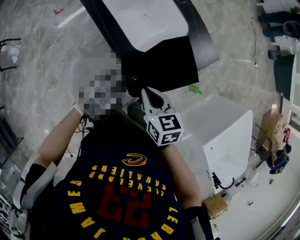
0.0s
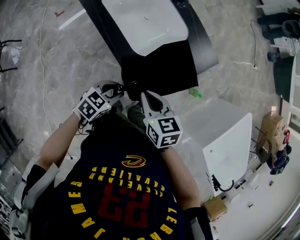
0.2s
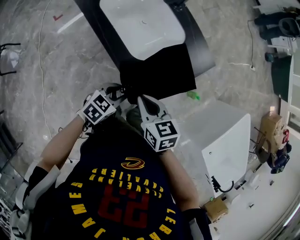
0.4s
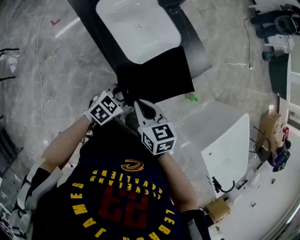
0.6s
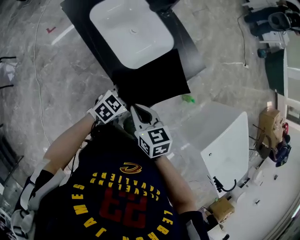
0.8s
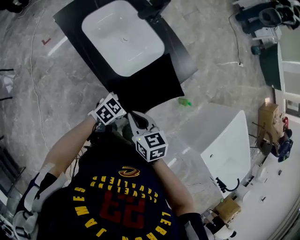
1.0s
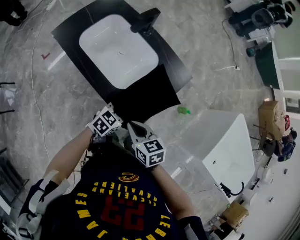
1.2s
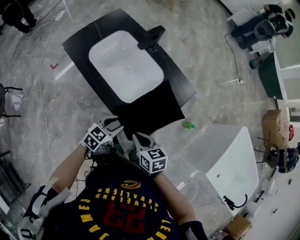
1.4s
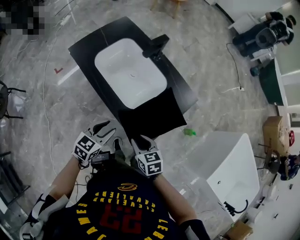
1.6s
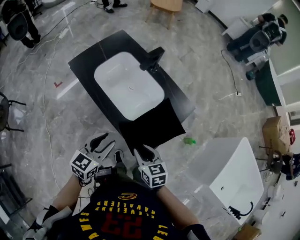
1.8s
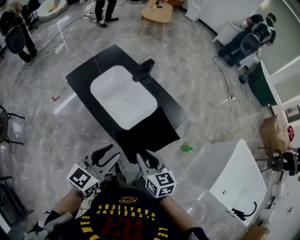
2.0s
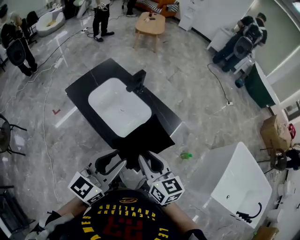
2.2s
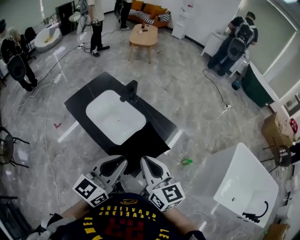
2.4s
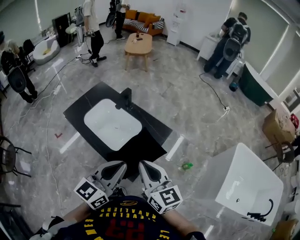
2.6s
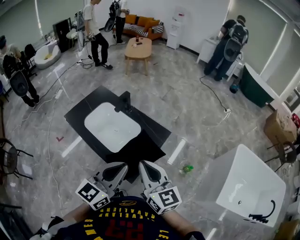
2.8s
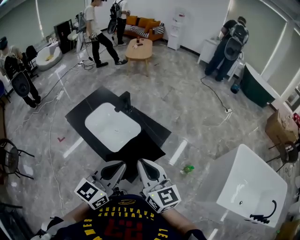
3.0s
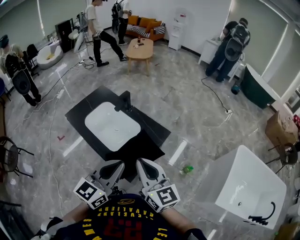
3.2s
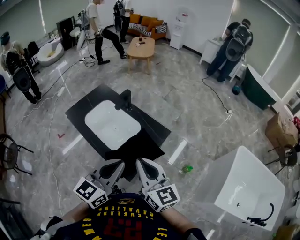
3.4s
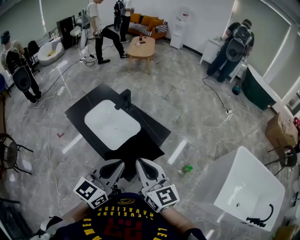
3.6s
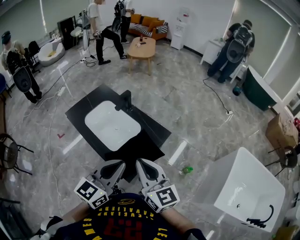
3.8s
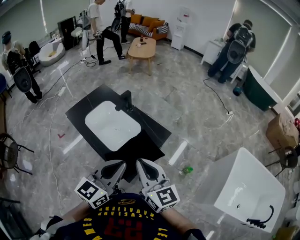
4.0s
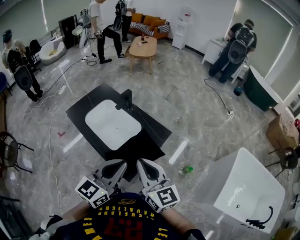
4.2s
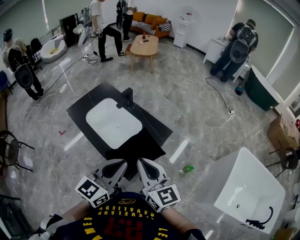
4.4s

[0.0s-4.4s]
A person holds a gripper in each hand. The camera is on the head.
0.0s to 1.4s: The left gripper moves roughly 10 cm to the right and comes back, and closes.
1.4s to 3.0s: The left gripper travels upward by some 35 cm, tilts its fingers about 30 degrees upward, and closes its fingers; the right gripper shifts approximately 35 cm upward and to the right, angles its fingers upward, by some 40 degrees, and opens, then closes again.
3.0s to 4.4s: The grippers move only a little.

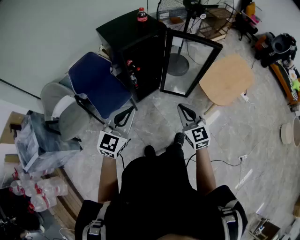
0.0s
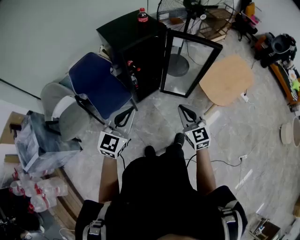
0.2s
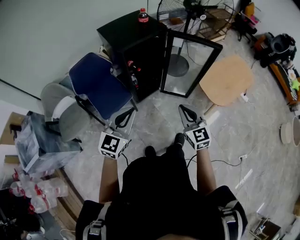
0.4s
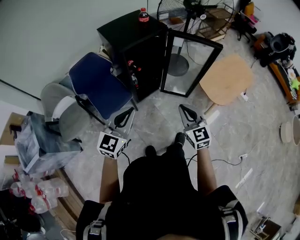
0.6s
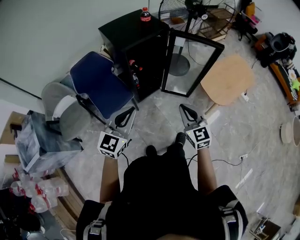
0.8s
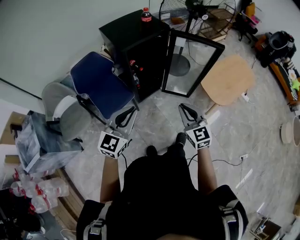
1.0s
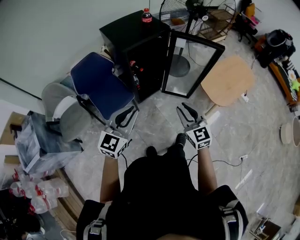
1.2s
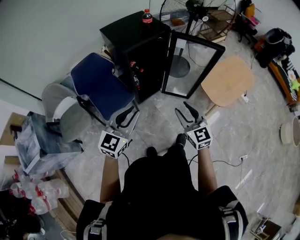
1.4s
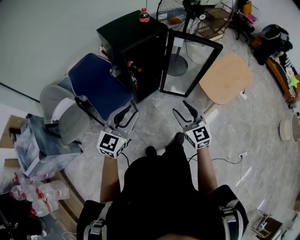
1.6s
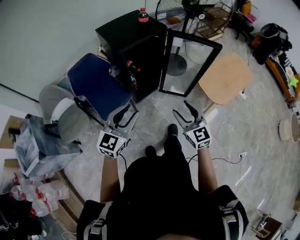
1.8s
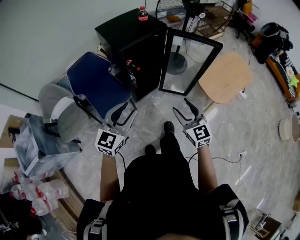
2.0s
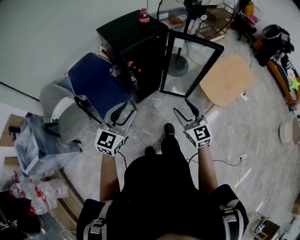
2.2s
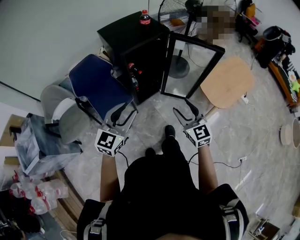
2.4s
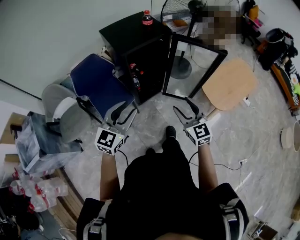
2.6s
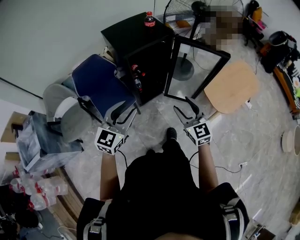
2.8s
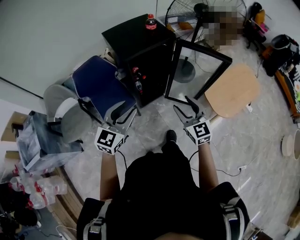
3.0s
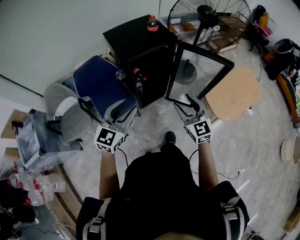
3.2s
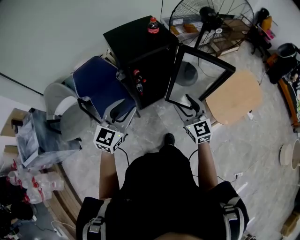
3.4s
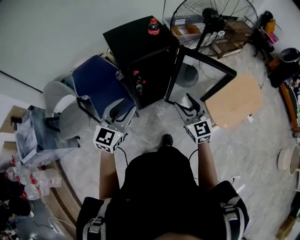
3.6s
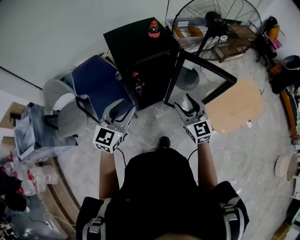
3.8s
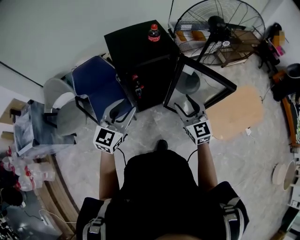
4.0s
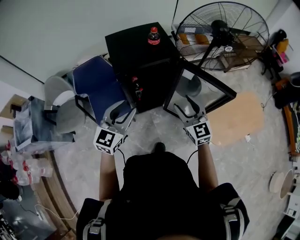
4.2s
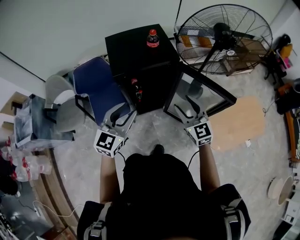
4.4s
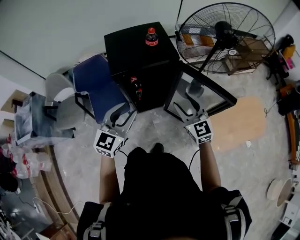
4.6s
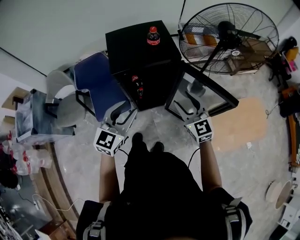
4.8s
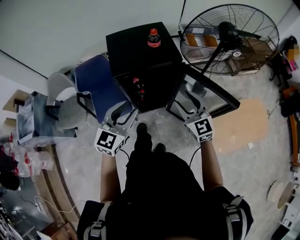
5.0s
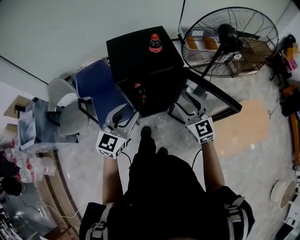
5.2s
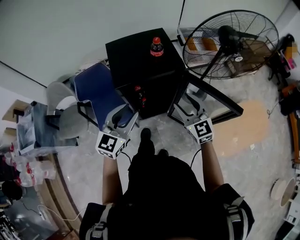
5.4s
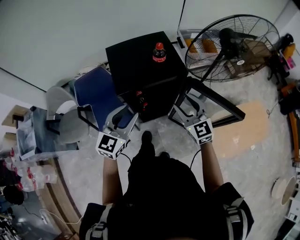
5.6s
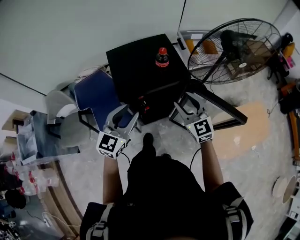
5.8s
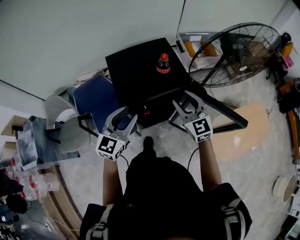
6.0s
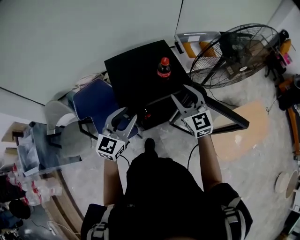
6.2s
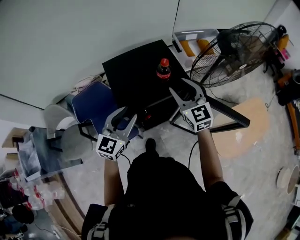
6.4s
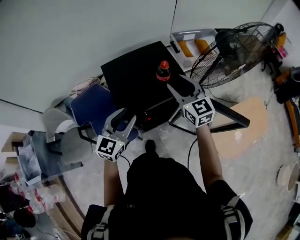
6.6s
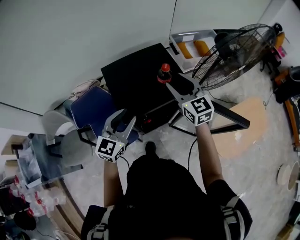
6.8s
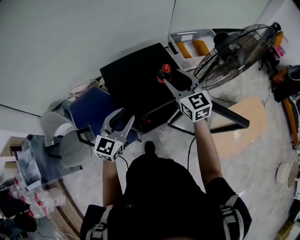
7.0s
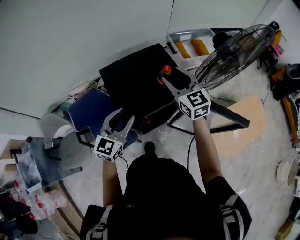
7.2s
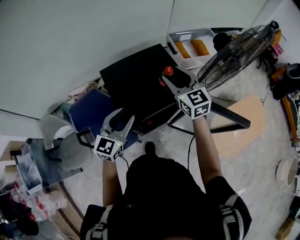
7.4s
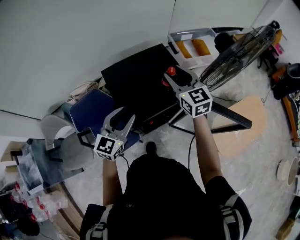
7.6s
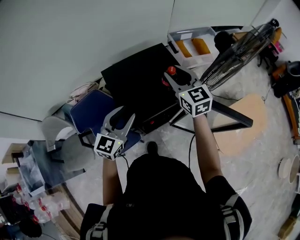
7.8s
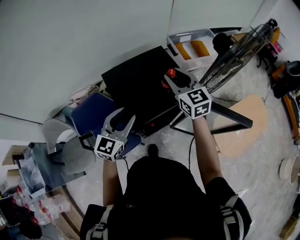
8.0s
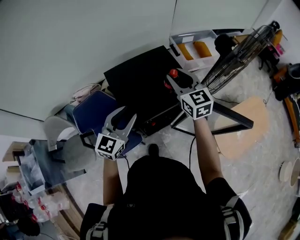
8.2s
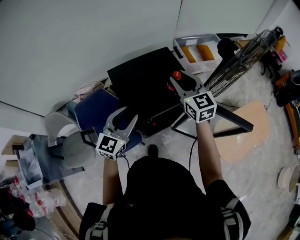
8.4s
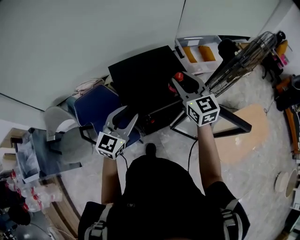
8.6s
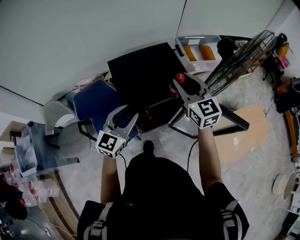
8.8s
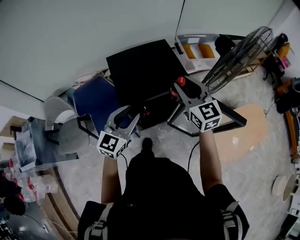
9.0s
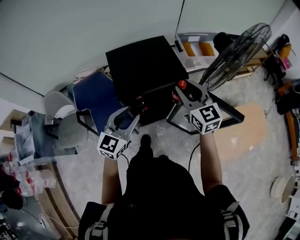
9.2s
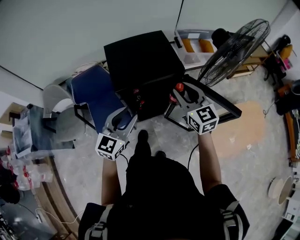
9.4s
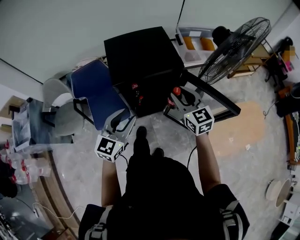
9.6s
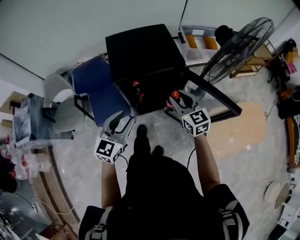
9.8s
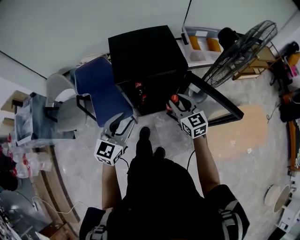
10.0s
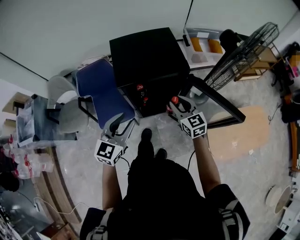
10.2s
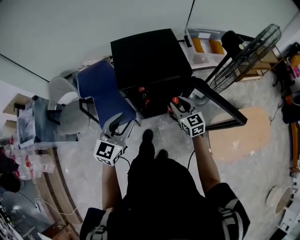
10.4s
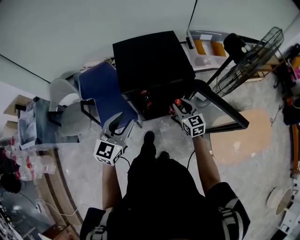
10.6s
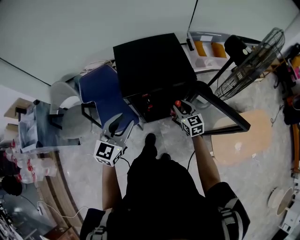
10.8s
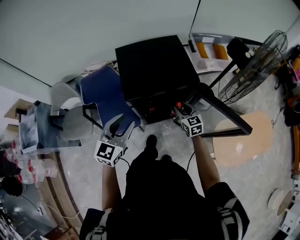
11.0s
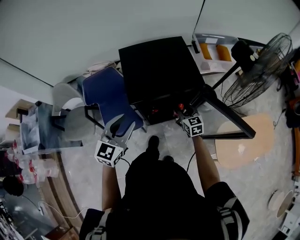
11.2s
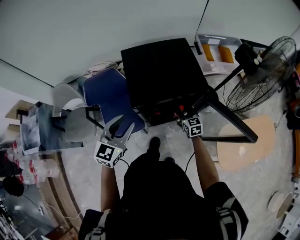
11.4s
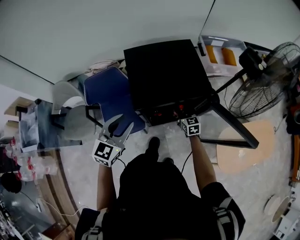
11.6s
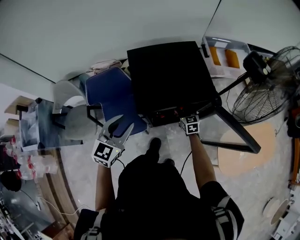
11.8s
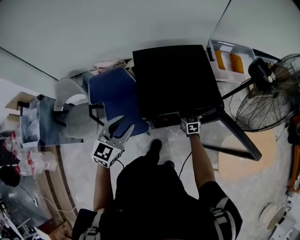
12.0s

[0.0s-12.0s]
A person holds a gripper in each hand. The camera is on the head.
0.0s to 1.6s: The right gripper opens its fingers. Meanwhile the left gripper opens up.
1.6s to 3.0s: The grippers both shift forward by roughly 10 cm.
3.0s to 4.4s: Both grippers travel together forward and to the right, roughly 15 cm.
4.4s to 6.0s: Both grippers move forward, some 15 cm.
6.0s to 7.6s: The right gripper moves forward, upward and to the left, roughly 15 cm; the left gripper heads forward, covering about 10 cm.
7.6s to 9.0s: The grippers both shift backward and to the right by about 10 cm.
9.0s to 10.4s: The right gripper is displaced downward by approximately 20 cm. Meanwhile the left gripper moves backward, some 10 cm.
10.4s to 12.0s: The left gripper goes approximately 15 cm forward and to the left. Meanwhile the right gripper moves downward and forward, approximately 25 cm.

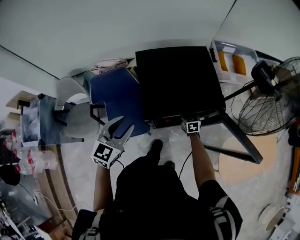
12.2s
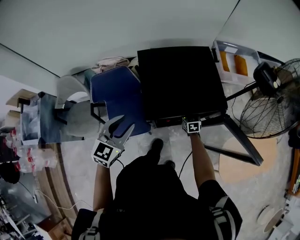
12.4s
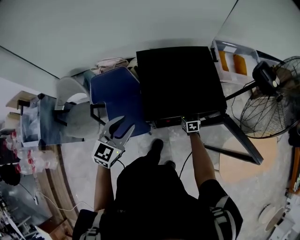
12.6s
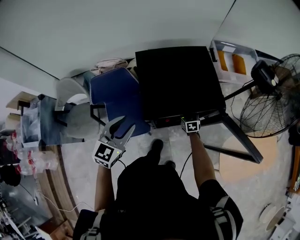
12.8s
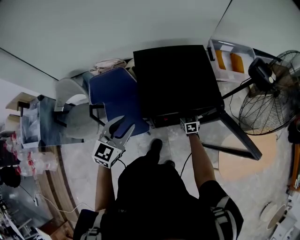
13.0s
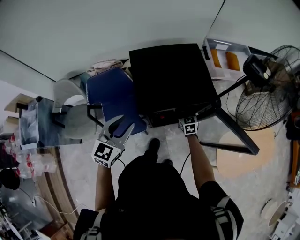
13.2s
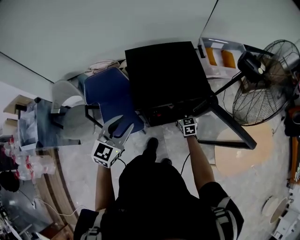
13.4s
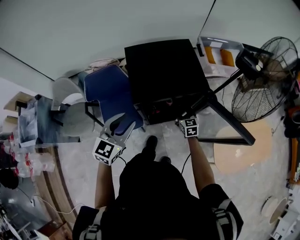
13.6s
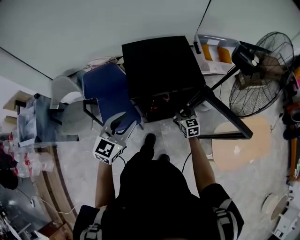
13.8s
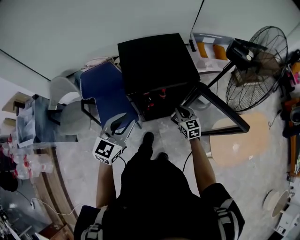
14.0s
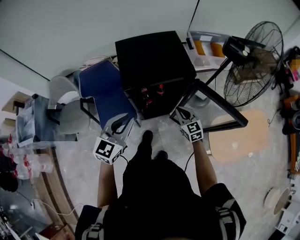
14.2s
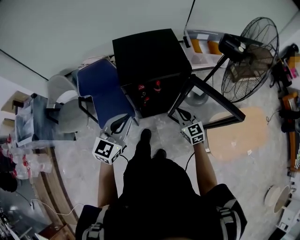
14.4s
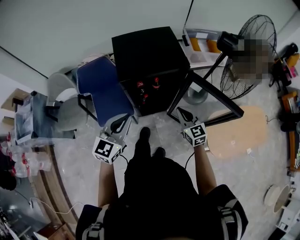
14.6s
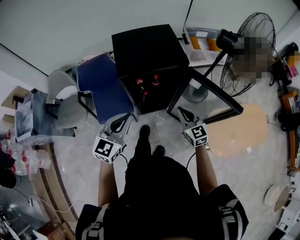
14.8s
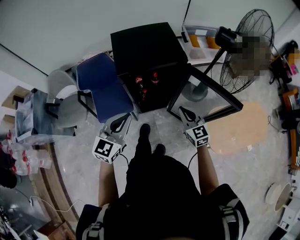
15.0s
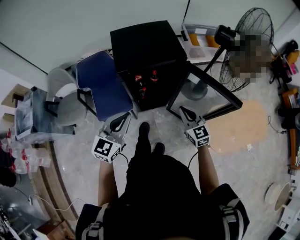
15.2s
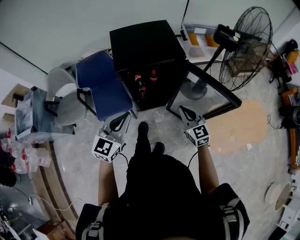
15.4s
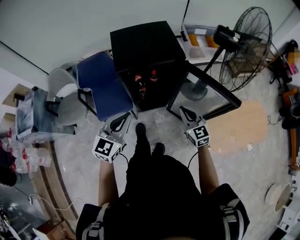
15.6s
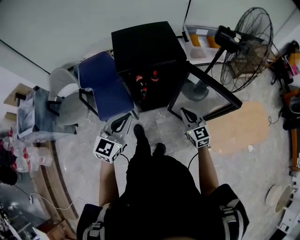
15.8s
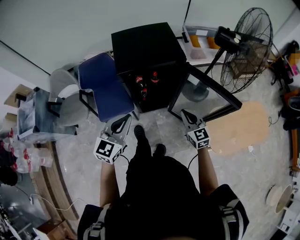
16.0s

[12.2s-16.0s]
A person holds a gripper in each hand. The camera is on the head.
12.2s to 13.4s: The right gripper heads backward, covering some 5 cm. Meanwhile the left gripper ends up about 5 cm from where it was.
13.4s to 14.8s: The right gripper shifts about 25 cm backward and upward, and closes its fingers. The left gripper travels backward and to the right by some 15 cm, and closes up.
14.8s to 16.0s: There are only small adjustments of the grippers.

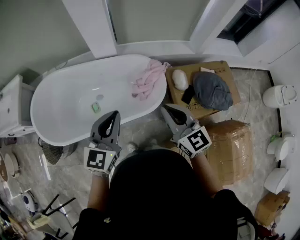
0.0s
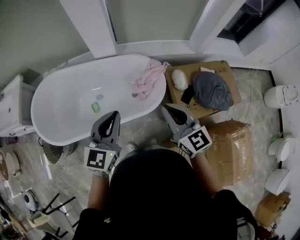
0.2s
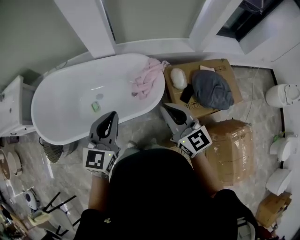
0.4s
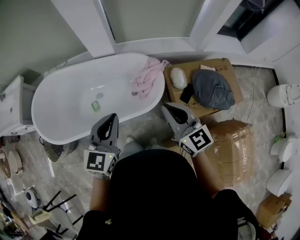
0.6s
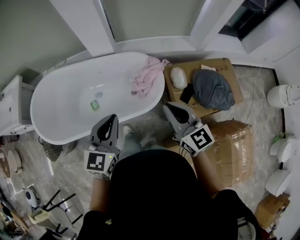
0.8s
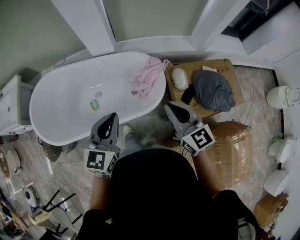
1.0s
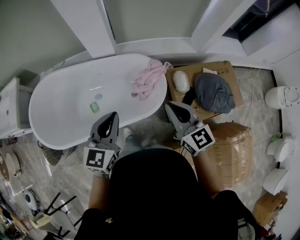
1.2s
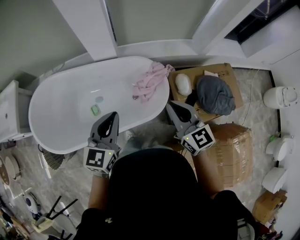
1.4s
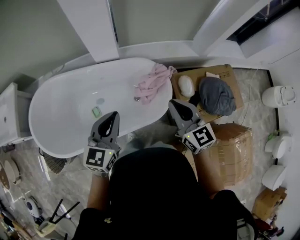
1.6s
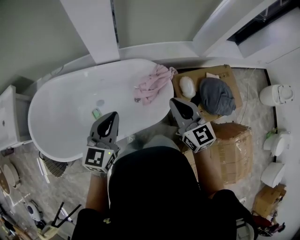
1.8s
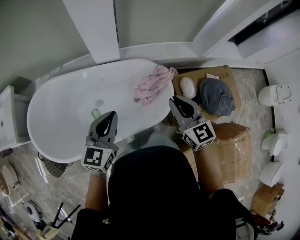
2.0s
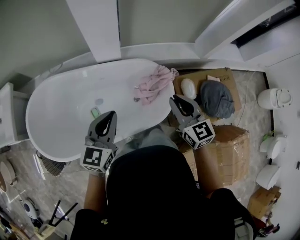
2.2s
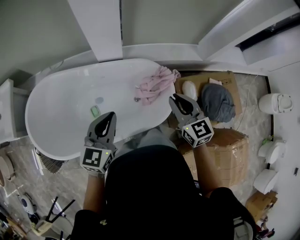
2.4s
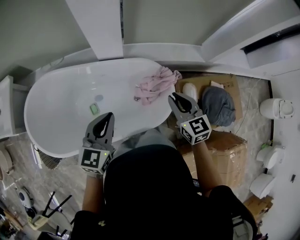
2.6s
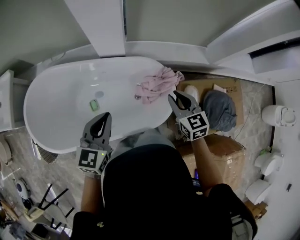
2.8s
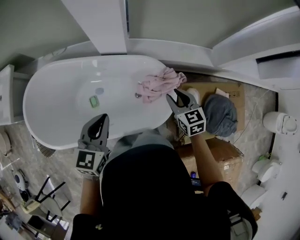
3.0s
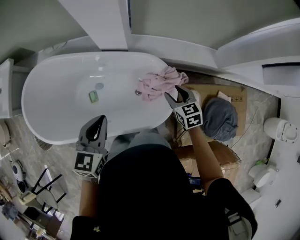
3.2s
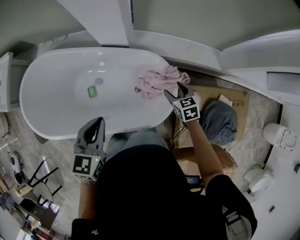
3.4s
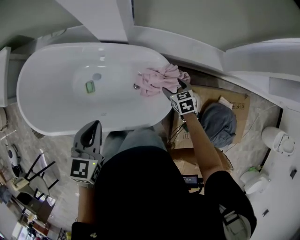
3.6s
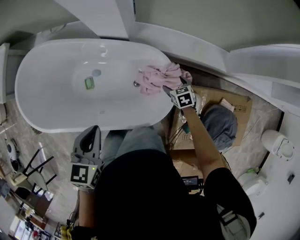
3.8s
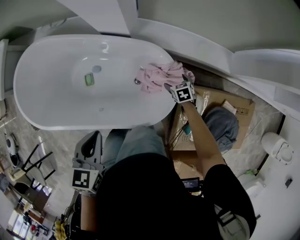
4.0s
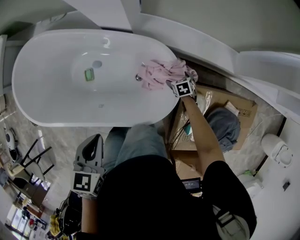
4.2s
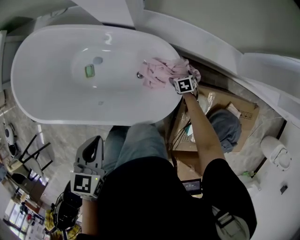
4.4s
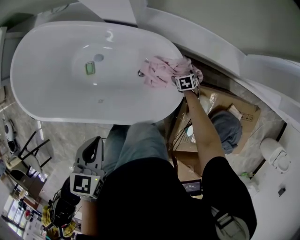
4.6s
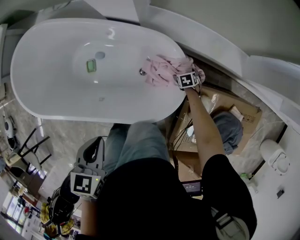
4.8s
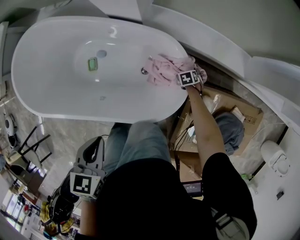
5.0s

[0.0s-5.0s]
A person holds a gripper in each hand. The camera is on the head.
0.0s to 1.6s: The left gripper shifts about 15 cm forward and to the left. The right gripper shifts approximately 15 cm forward.
1.6s to 3.4s: The right gripper goes about 40 cm downward and forward, tilts its fingers about 40 degrees downward, and opens its fingers. The left gripper moves forward and downward, roughly 15 cm, and turns by approximately 30 degrees.
3.4s to 5.0s: The left gripper travels downward by roughly 10 cm, and turns by roughly 30 degrees; the right gripper heads downward, covering some 35 cm, and angles its fingers downward, by approximately 30 degrees.
